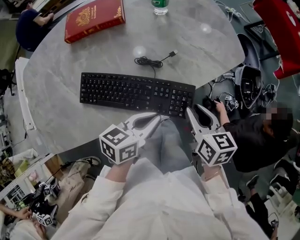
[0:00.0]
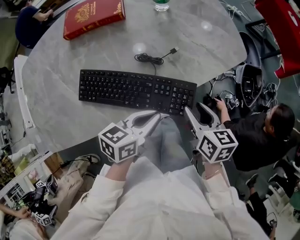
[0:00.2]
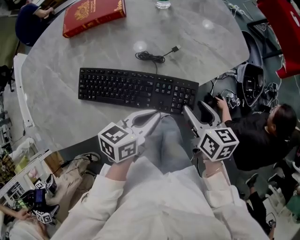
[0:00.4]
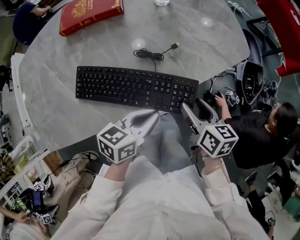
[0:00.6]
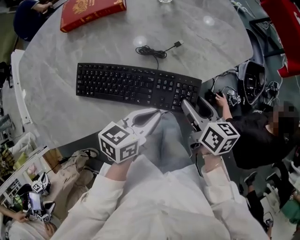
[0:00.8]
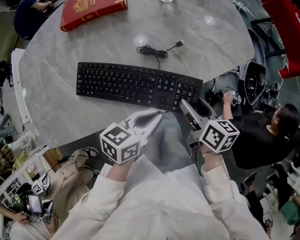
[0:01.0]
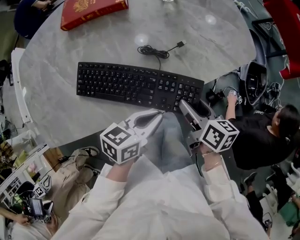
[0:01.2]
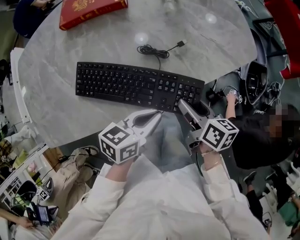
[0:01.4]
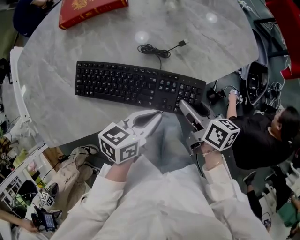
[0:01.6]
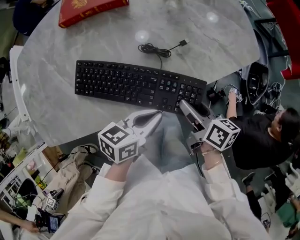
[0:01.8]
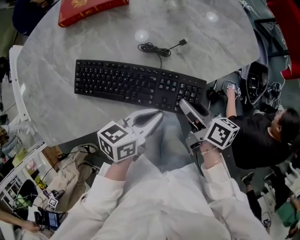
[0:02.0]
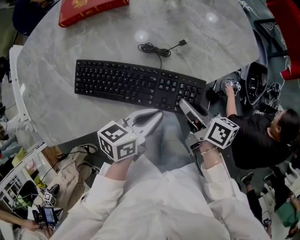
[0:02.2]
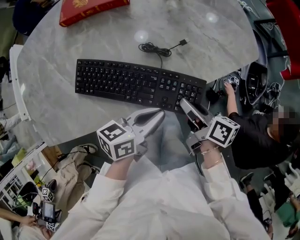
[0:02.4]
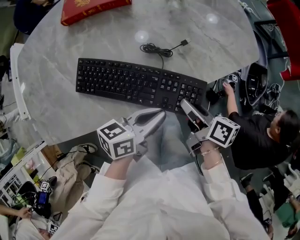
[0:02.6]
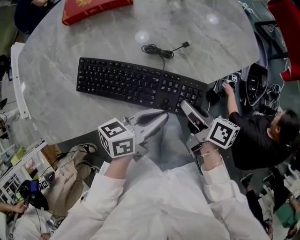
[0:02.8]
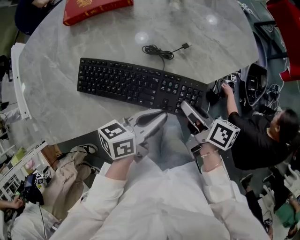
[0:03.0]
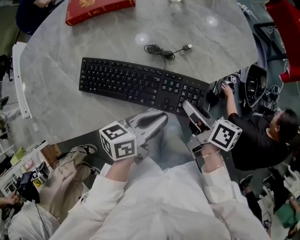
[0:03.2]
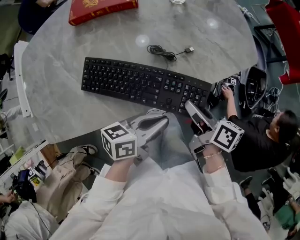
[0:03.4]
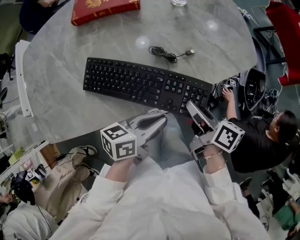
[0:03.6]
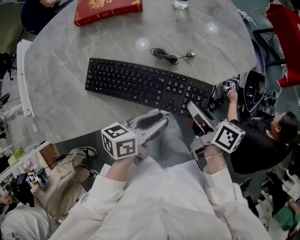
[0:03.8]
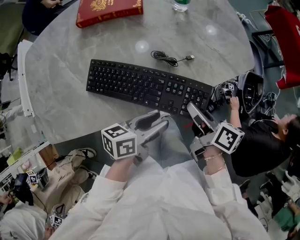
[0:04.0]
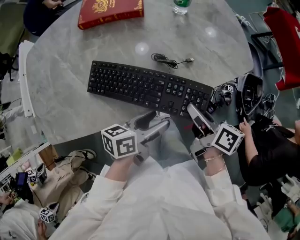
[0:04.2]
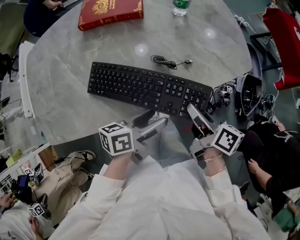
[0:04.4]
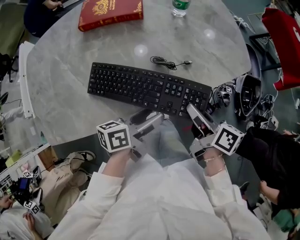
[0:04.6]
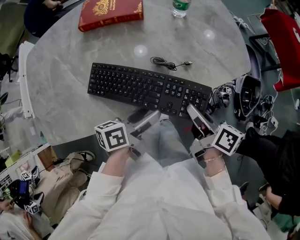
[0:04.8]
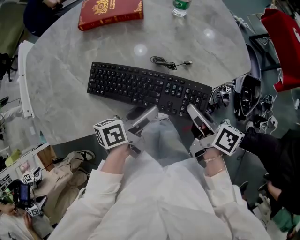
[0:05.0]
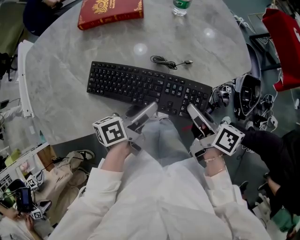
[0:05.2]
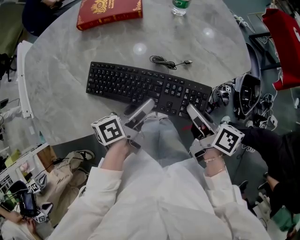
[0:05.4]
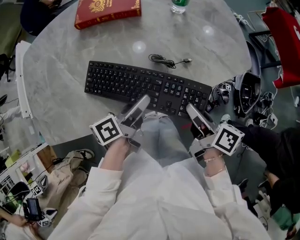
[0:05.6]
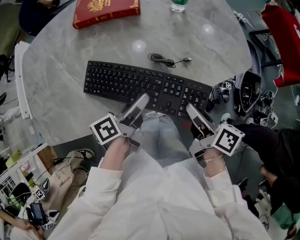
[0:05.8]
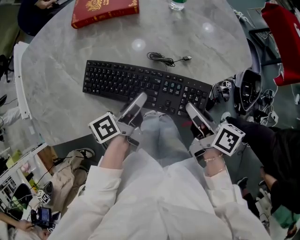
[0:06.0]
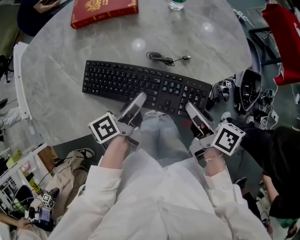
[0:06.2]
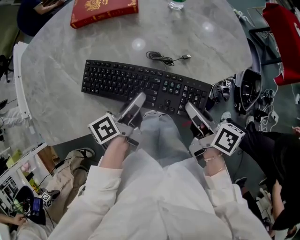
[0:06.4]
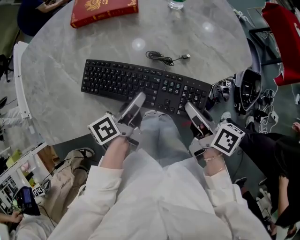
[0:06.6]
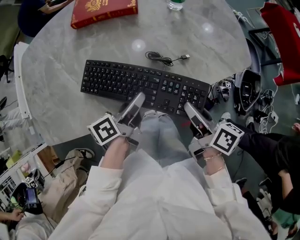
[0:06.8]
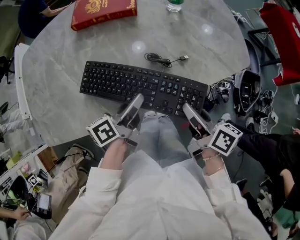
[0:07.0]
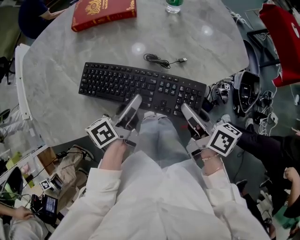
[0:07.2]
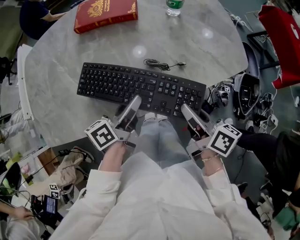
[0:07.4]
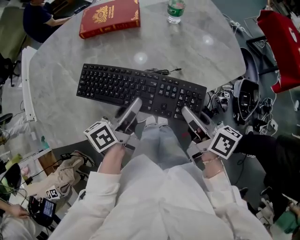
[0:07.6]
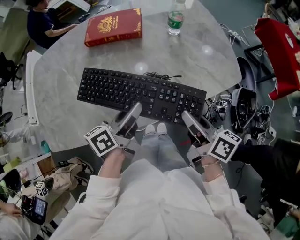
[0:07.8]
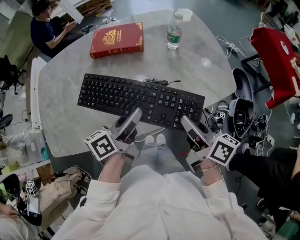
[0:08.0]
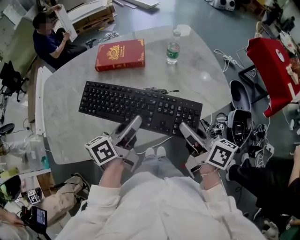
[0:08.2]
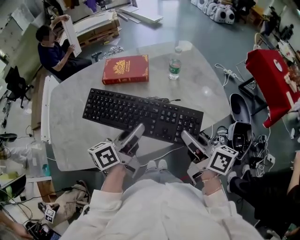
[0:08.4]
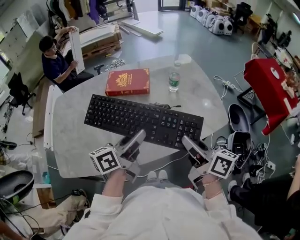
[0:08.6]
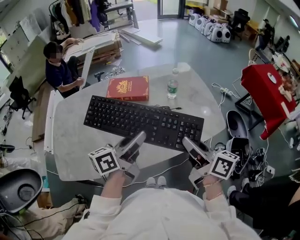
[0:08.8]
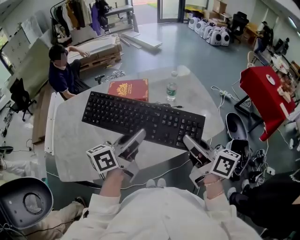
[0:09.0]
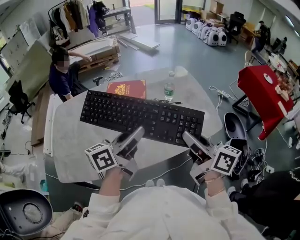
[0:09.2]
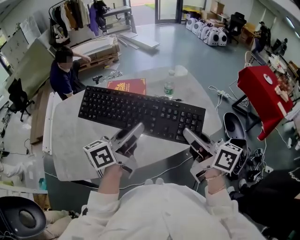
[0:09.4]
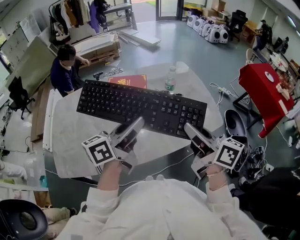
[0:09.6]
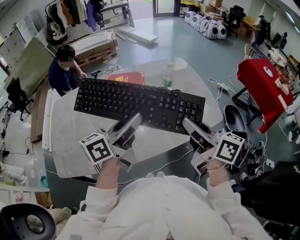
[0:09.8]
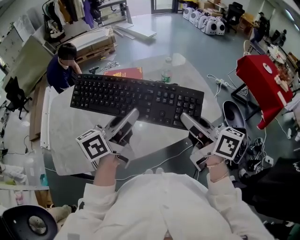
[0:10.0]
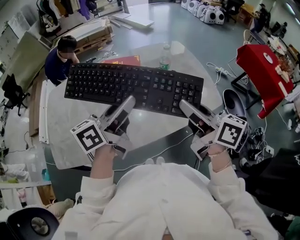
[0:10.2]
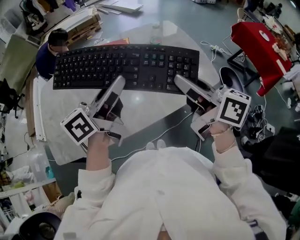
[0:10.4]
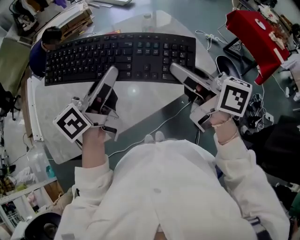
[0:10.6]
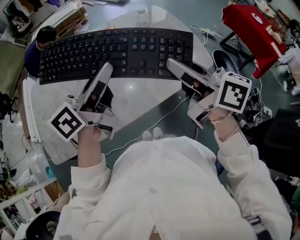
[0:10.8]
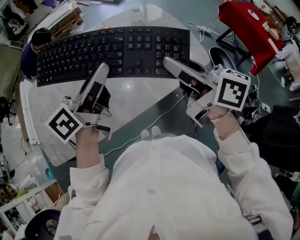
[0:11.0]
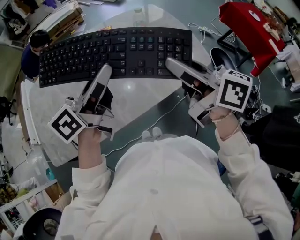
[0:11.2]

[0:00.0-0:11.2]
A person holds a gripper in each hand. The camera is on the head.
0:00.0 to 0:01.6: The right gripper heads downward, covering approximately 5 cm, changes its angle by approximately 20 degrees, and opens up.
0:01.6 to 0:03.2: The right gripper closes.
0:03.2 to 0:04.8: The left gripper is displaced to the left by some 5 cm, and opens its fingers. Meanwhile the right gripper moves upward, about 5 cm.
0:04.8 to 0:06.4: The left gripper closes.
0:06.4 to 0:08.0: Both grippers travel together downward, approximately 10 cm. The left gripper turns by approximately 20 degrees.
0:08.0 to 0:09.6: The two grippers go some 10 cm upward. The right gripper turns by roughly 20 degrees, while the left gripper rotates about 20 degrees.
0:09.6 to 0:11.2: The grippers move only a little.

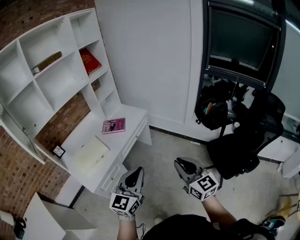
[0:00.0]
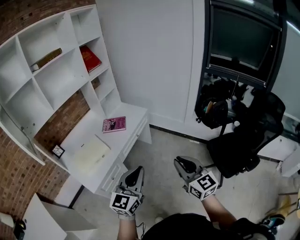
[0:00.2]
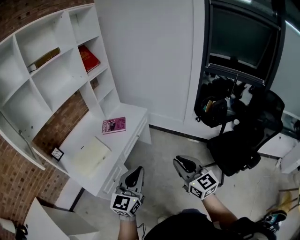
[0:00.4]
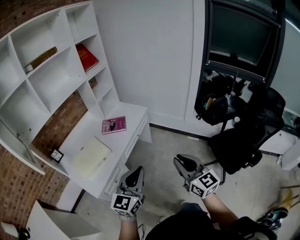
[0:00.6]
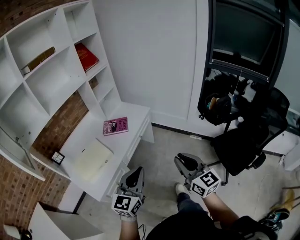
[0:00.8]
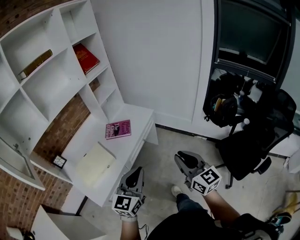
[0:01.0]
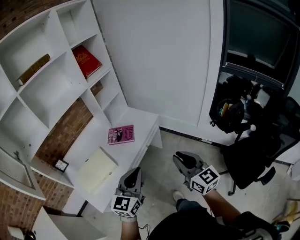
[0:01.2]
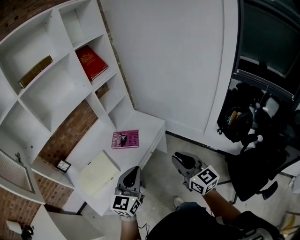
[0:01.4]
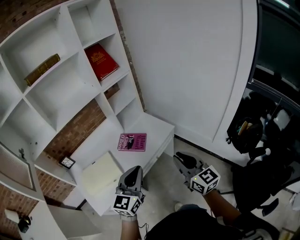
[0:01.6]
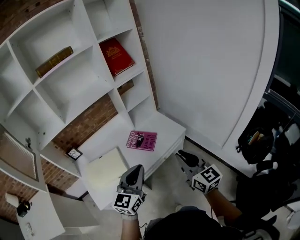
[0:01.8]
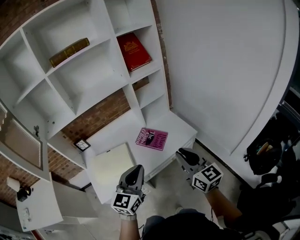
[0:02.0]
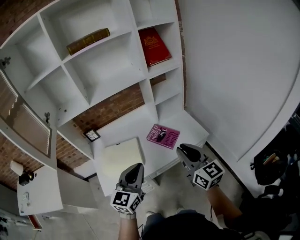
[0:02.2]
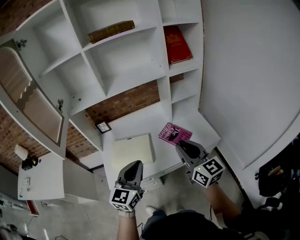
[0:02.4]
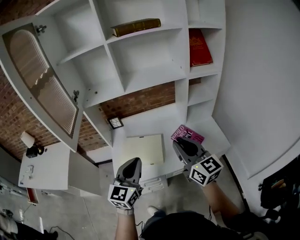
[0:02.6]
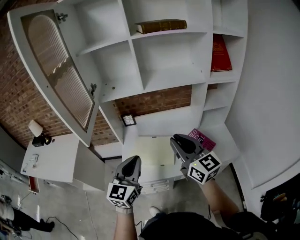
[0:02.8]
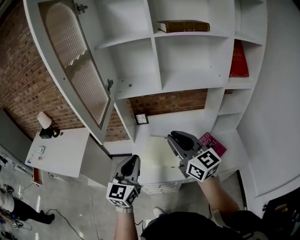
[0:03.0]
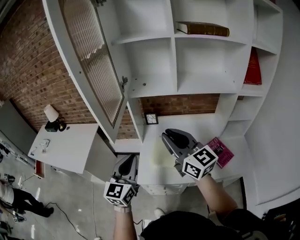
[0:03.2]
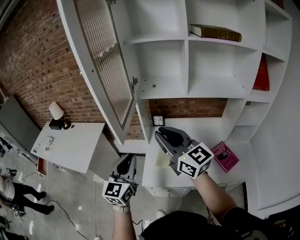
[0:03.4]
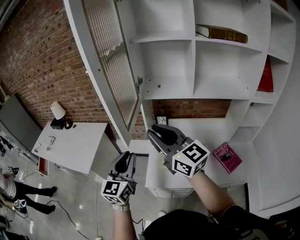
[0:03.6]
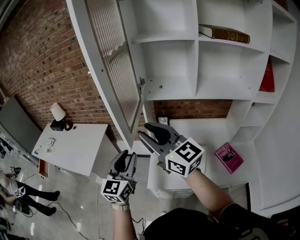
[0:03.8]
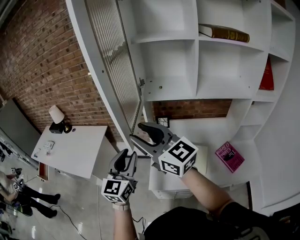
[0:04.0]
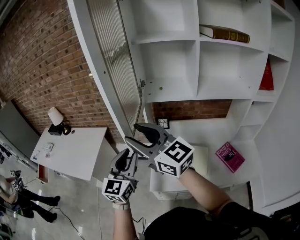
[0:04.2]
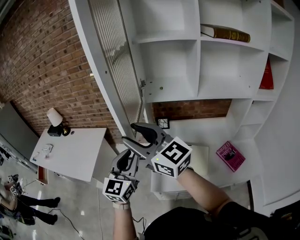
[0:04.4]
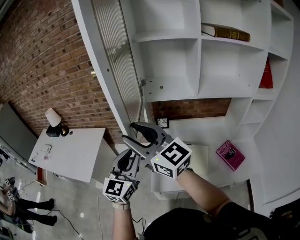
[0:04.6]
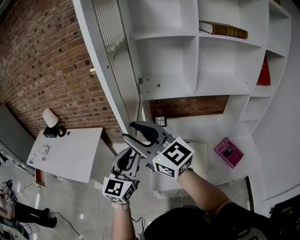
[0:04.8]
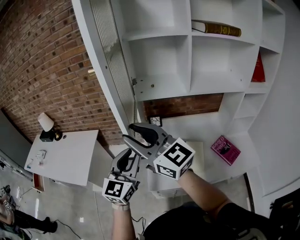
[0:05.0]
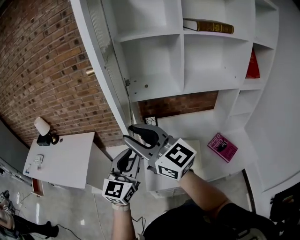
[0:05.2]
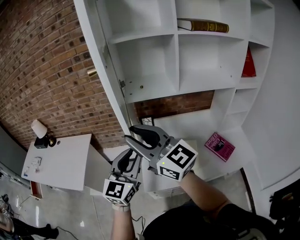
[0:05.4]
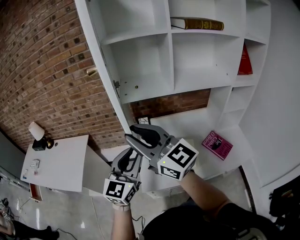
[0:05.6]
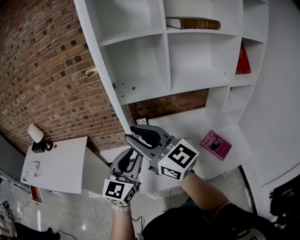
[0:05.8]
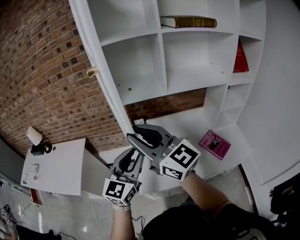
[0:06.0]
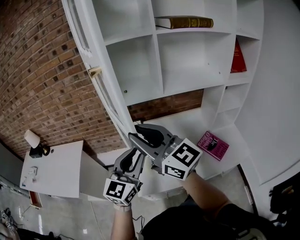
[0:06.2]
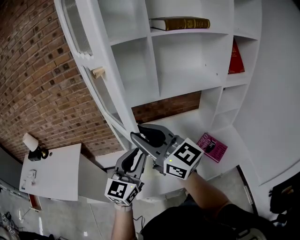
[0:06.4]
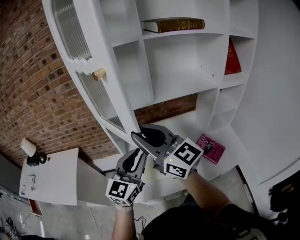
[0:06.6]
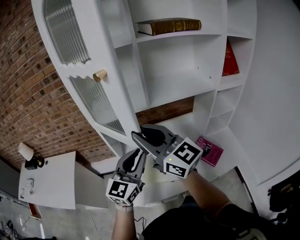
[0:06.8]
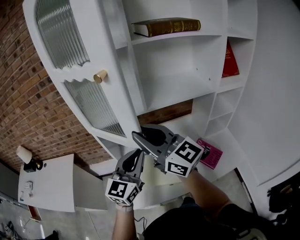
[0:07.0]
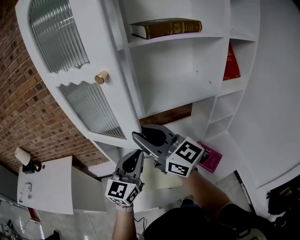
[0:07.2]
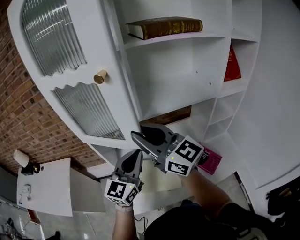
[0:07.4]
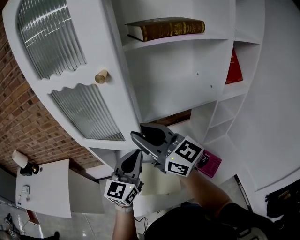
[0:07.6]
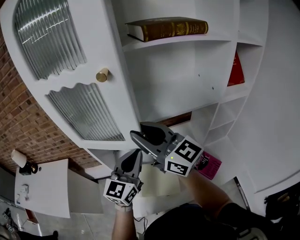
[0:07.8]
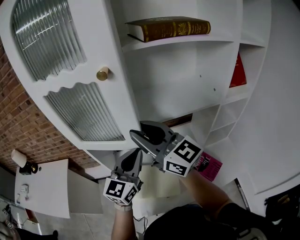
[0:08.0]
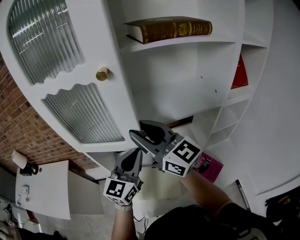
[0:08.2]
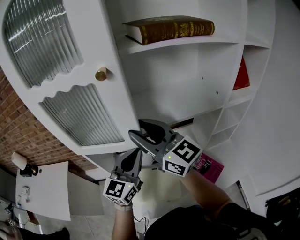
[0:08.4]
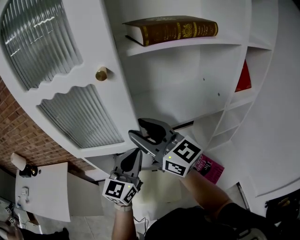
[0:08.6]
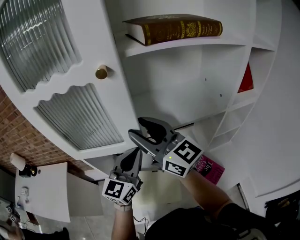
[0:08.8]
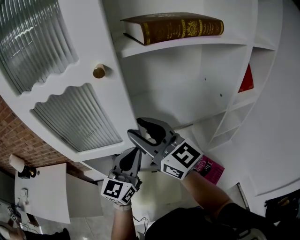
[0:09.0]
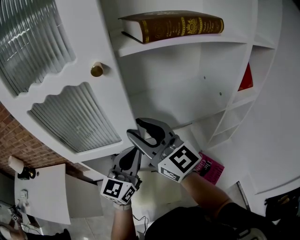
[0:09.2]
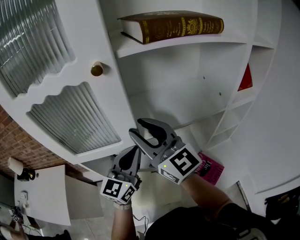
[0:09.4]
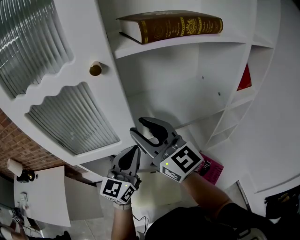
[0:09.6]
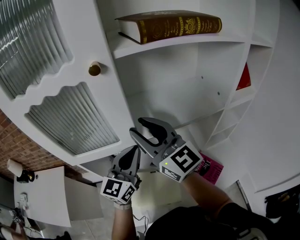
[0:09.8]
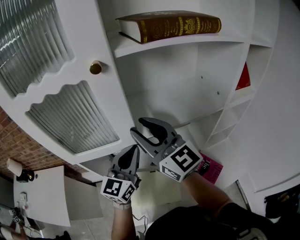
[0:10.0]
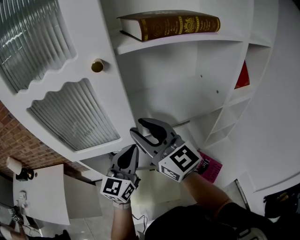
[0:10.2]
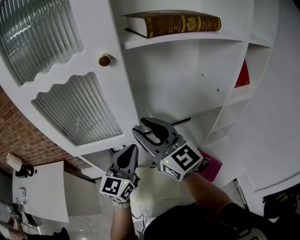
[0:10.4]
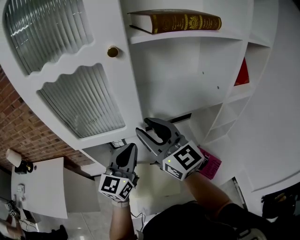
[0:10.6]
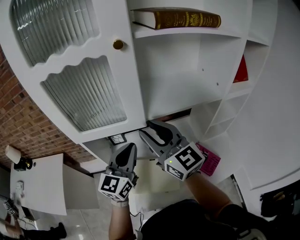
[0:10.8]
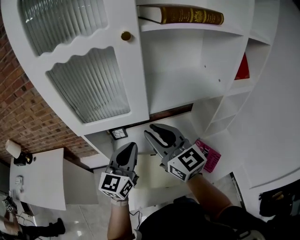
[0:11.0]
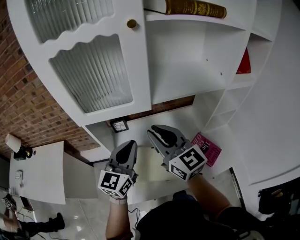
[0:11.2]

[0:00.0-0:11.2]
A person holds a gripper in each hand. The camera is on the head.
0:00.0 to 0:01.6: Both grippers travel together forward, about 35 cm.
0:01.6 to 0:03.2: Both grippers are carried some 40 cm. The left gripper turns by roughly 50 degrees, while the right gripper rotates some 60 degrees.
0:03.2 to 0:04.8: The left gripper travels forward and to the left by about 10 cm; the right gripper shifts approximately 20 cm to the left and forward, and opens.
0:04.8 to 0:06.4: Both grippers move to the right, about 15 cm.
0:06.4 to 0:08.0: Both grippers move forward and to the right, approximately 20 cm. The left gripper closes.
0:08.0 to 0:09.6: The grippers both shift forward by approximately 5 cm.
0:09.6 to 0:11.2: The left gripper heads backward and to the left, covering some 10 cm; the right gripper heads backward and downward, covering roughly 15 cm.

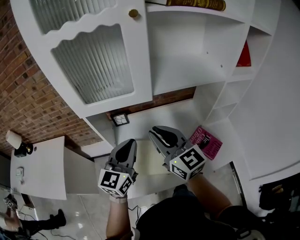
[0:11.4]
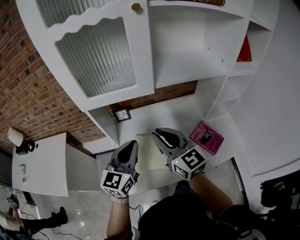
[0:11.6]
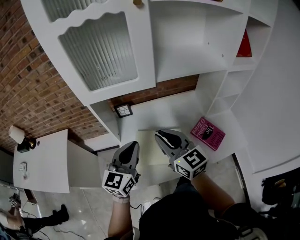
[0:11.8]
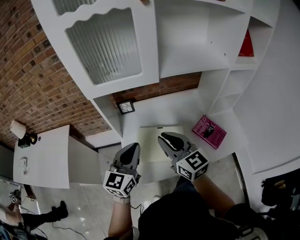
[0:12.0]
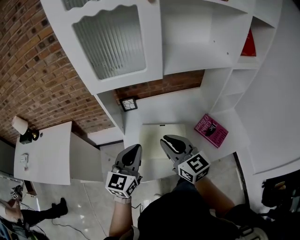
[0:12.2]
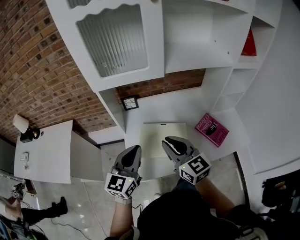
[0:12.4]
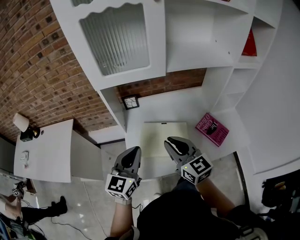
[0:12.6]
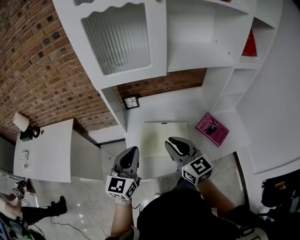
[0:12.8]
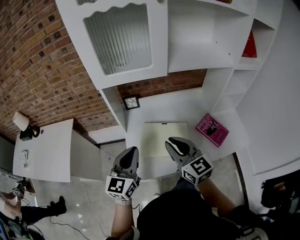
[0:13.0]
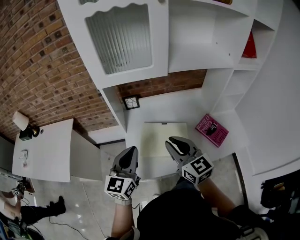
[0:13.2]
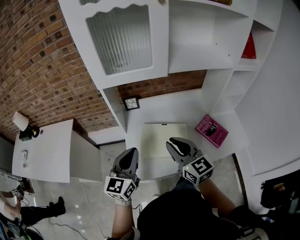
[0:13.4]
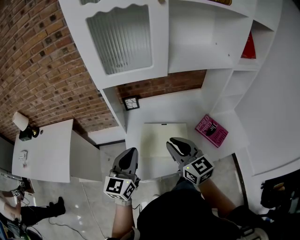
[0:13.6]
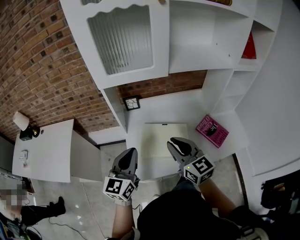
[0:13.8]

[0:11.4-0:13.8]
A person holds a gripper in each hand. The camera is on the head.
0:11.4 to 0:12.6: The left gripper goes some 15 cm backward, downward and to the left. The right gripper moves backward and downward, about 15 cm.
0:12.6 to 0:13.8: The grippers move only a little.
